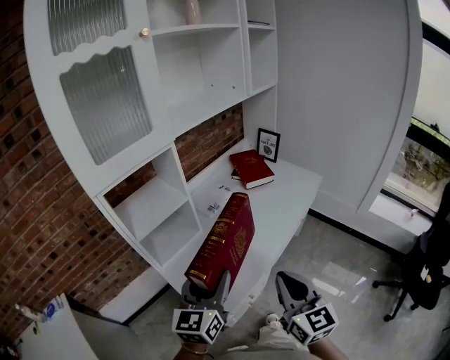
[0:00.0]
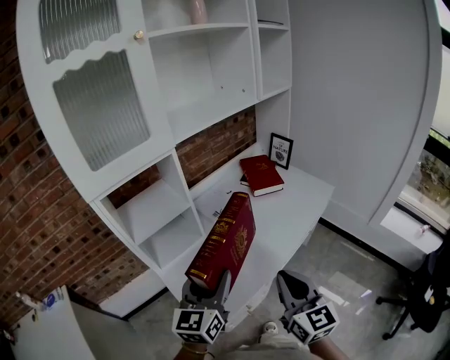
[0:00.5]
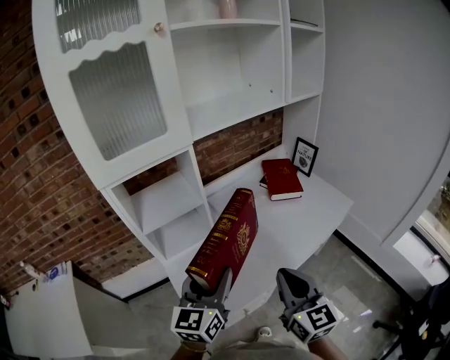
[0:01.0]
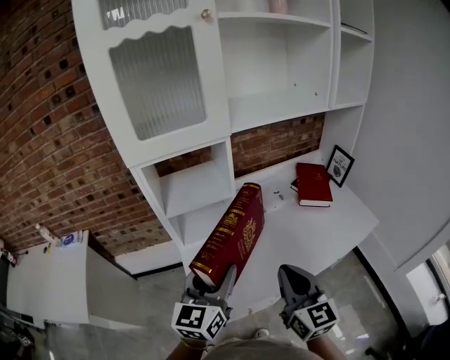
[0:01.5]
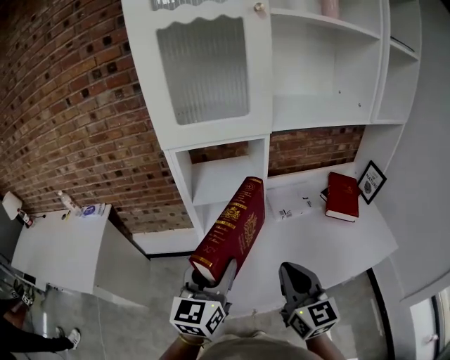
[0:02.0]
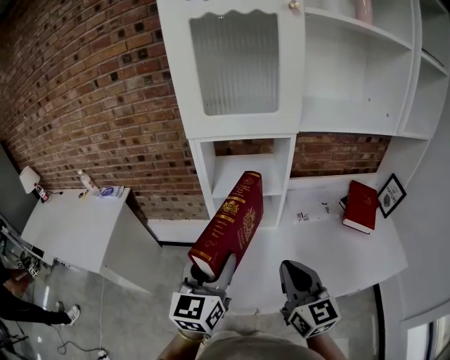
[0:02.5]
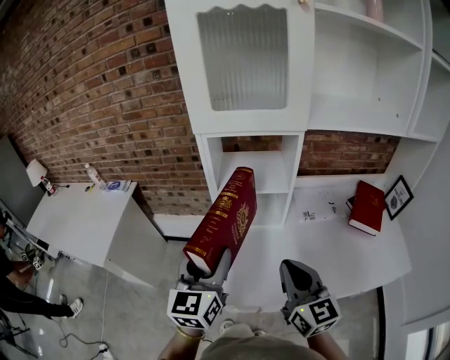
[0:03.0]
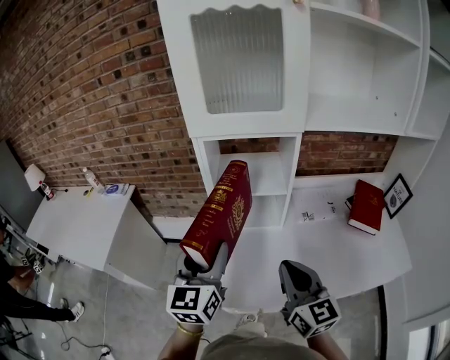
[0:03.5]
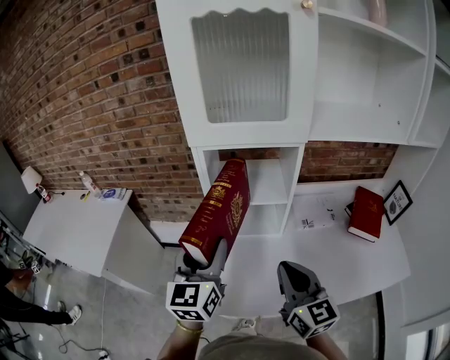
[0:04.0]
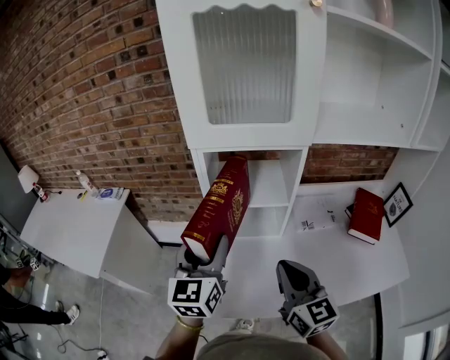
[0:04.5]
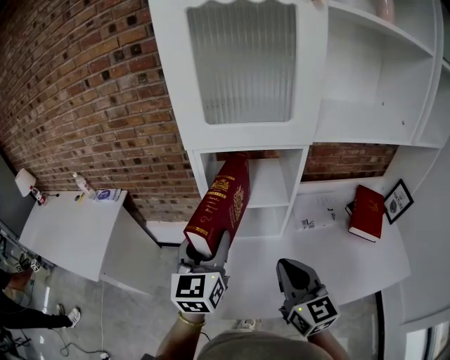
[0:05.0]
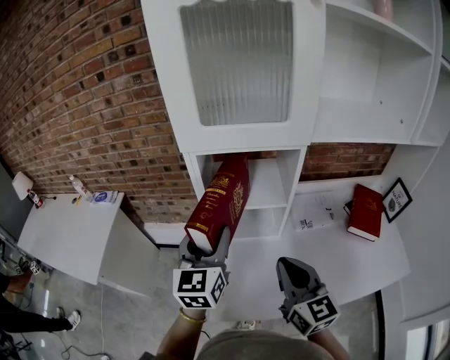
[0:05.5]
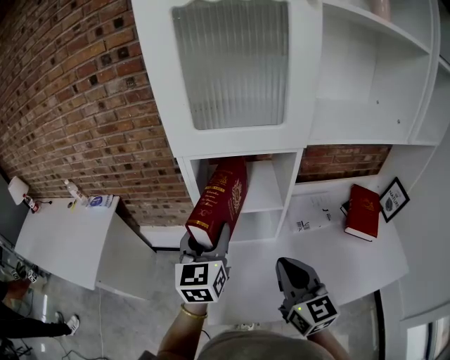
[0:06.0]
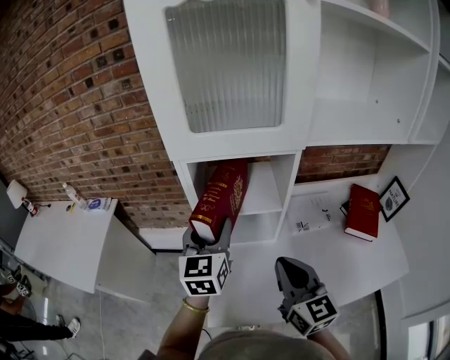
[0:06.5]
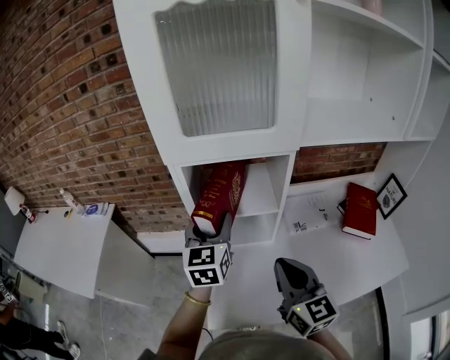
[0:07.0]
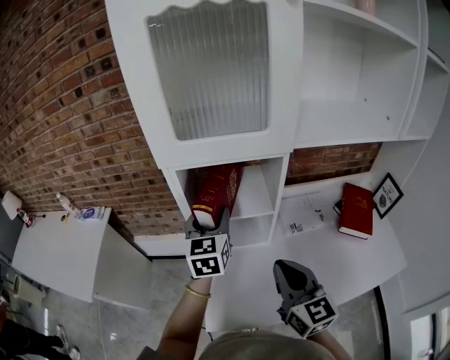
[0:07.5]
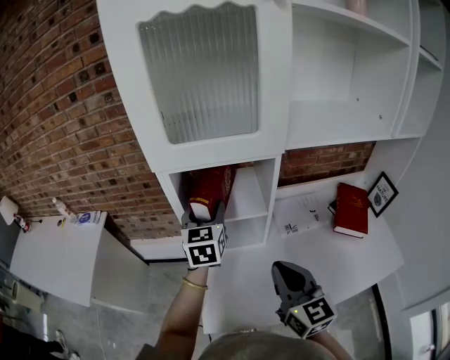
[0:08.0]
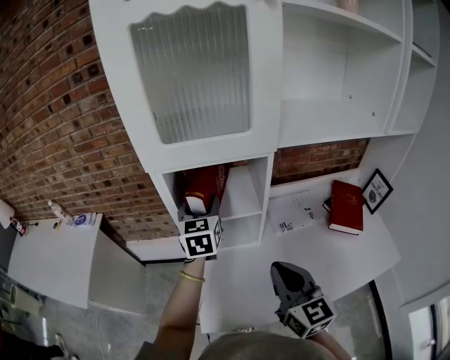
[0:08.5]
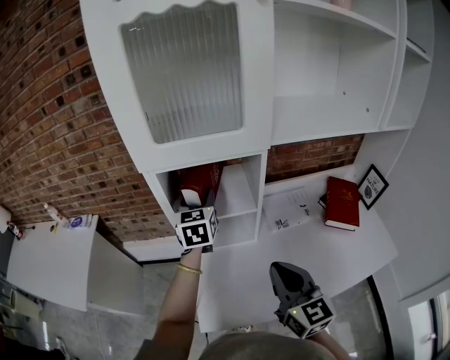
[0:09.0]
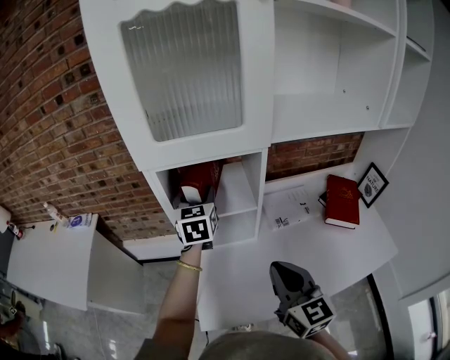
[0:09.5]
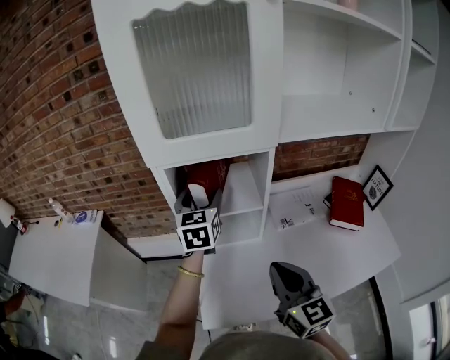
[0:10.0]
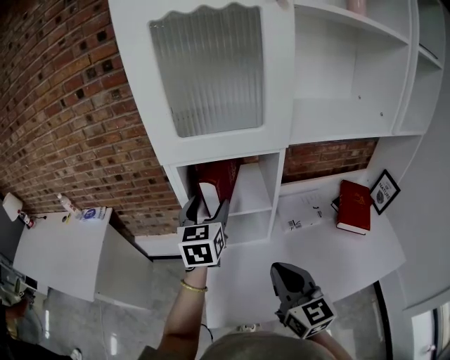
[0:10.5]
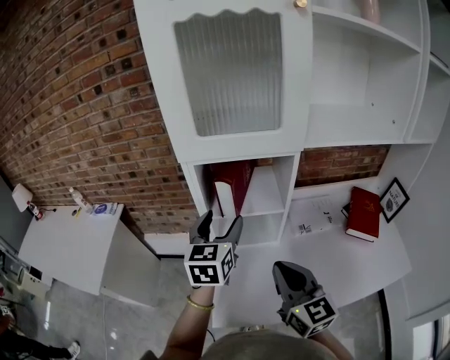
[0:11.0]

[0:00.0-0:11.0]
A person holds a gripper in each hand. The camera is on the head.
0:00.0 to 0:02.0: The right gripper shifts by roughly 15 cm, and rotates approximately 40 degrees; the left gripper changes place by approximately 5 cm, and turns by roughly 40 degrees.
0:02.0 to 0:03.5: The left gripper goes approximately 5 cm to the left.
0:03.5 to 0:05.5: The right gripper goes about 5 cm forward. Meanwhile the left gripper goes about 10 cm forward.
0:05.5 to 0:07.5: The left gripper moves forward and to the right, some 10 cm.
0:07.5 to 0:09.0: The left gripper is displaced forward by roughly 5 cm.
0:09.0 to 0:11.0: The right gripper shifts some 5 cm to the left; the left gripper moves backward, approximately 10 cm.

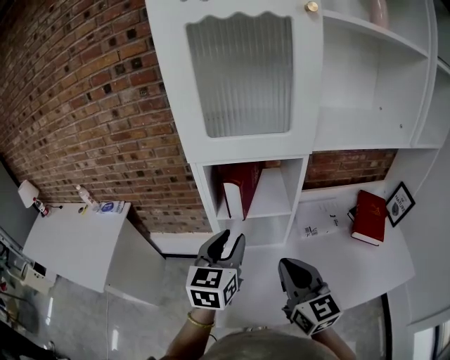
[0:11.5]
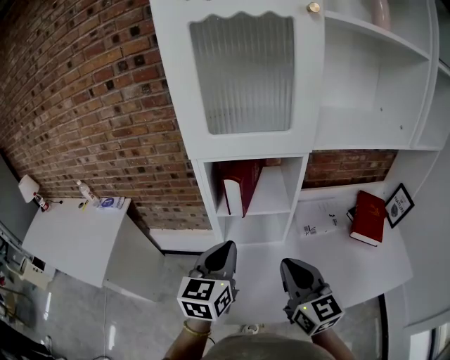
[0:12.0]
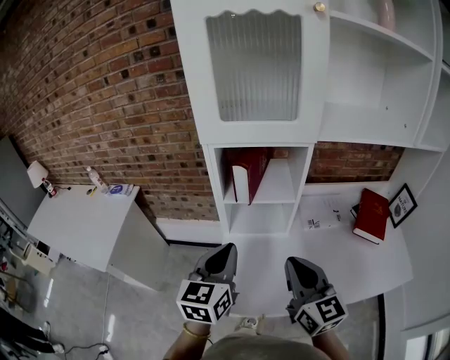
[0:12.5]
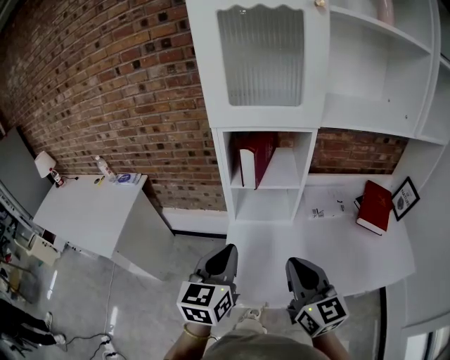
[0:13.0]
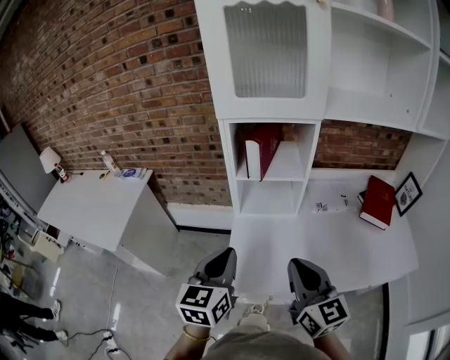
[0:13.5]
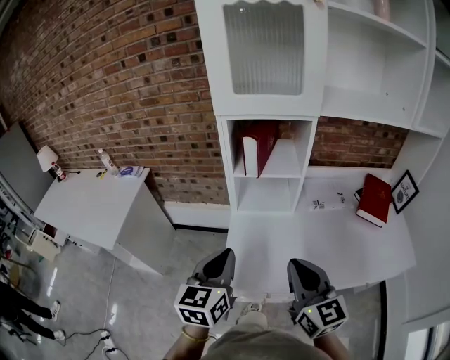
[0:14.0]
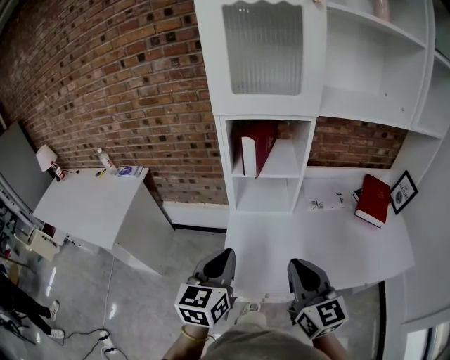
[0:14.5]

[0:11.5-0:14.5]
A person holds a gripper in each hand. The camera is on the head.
0:11.5 to 0:13.0: The two grippers go some 10 cm backward. The left gripper closes.
0:13.0 to 0:14.5: The left gripper changes place by about 5 cm.

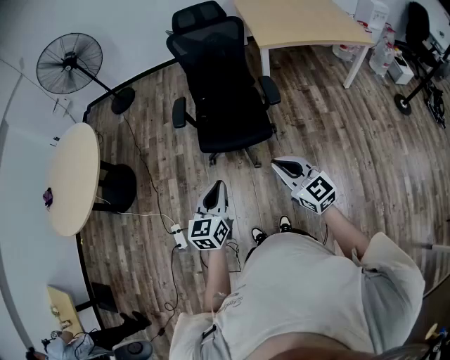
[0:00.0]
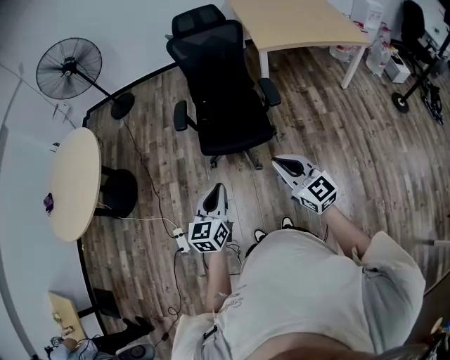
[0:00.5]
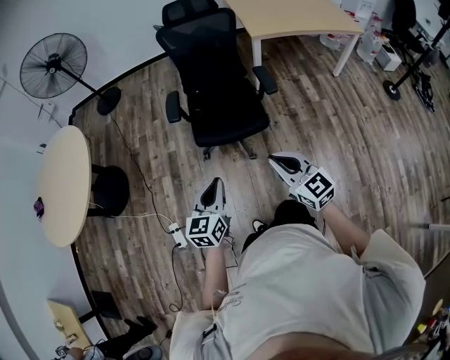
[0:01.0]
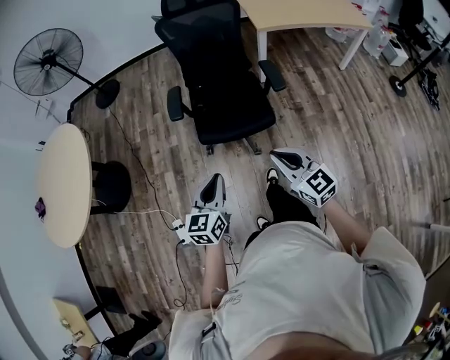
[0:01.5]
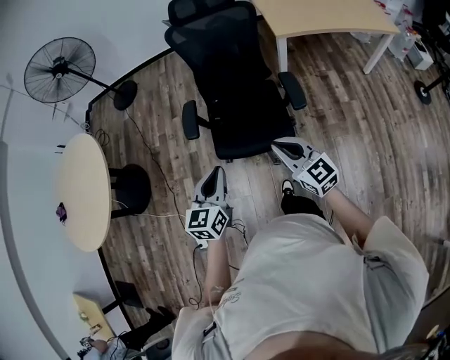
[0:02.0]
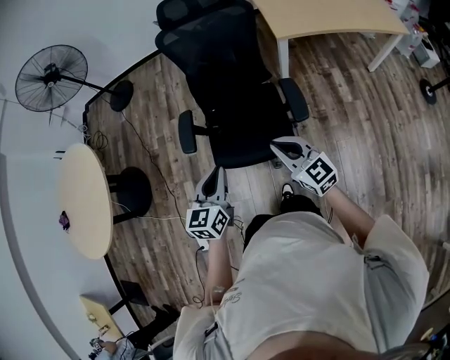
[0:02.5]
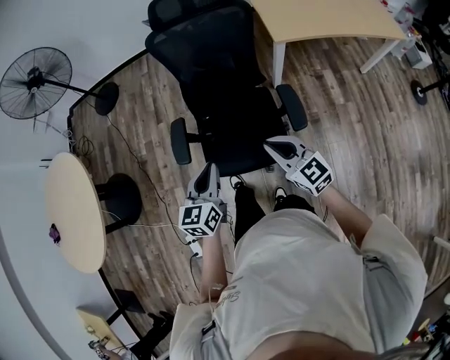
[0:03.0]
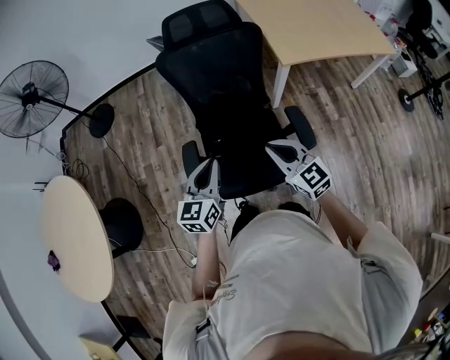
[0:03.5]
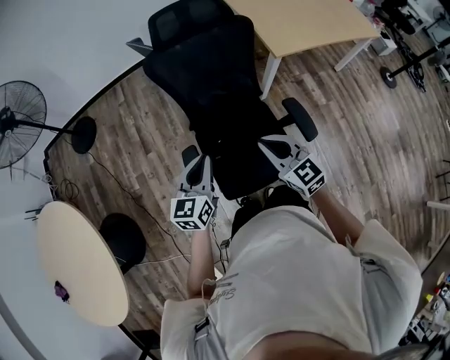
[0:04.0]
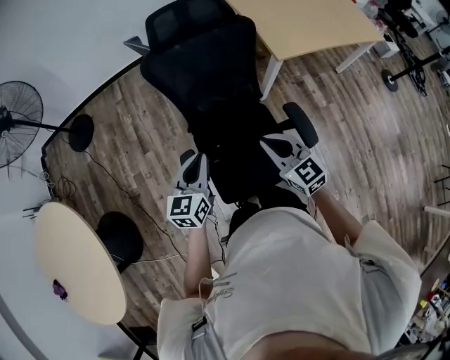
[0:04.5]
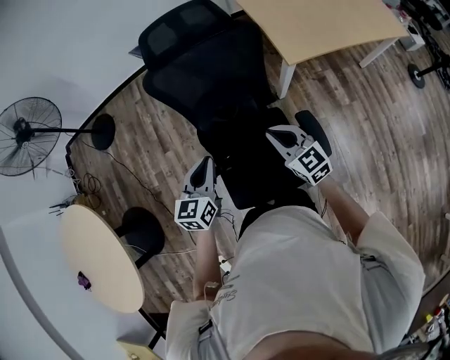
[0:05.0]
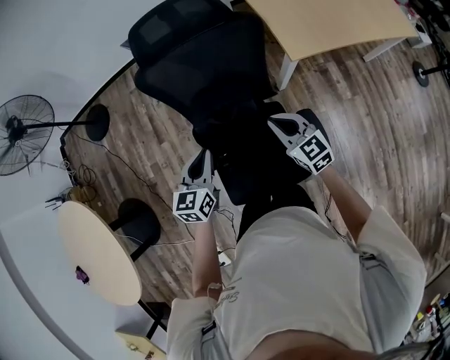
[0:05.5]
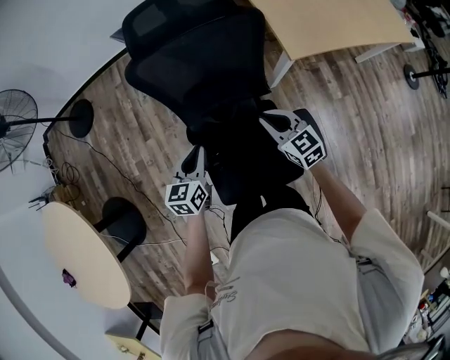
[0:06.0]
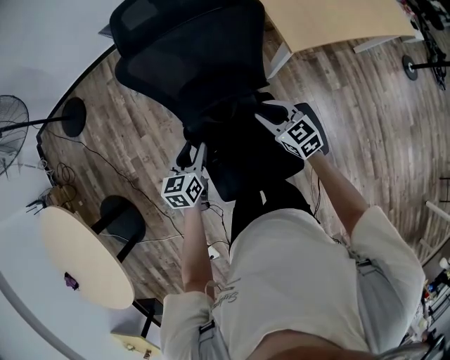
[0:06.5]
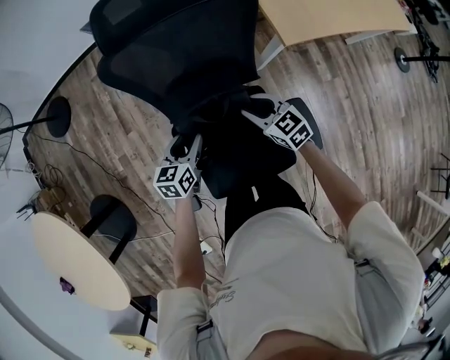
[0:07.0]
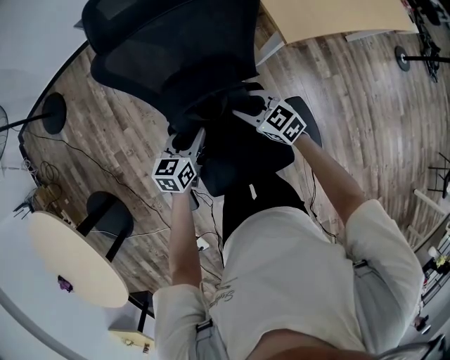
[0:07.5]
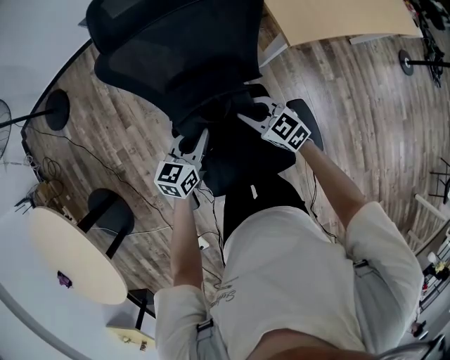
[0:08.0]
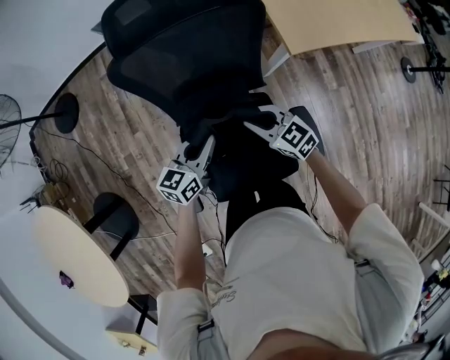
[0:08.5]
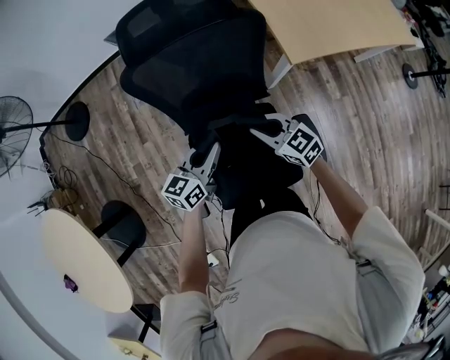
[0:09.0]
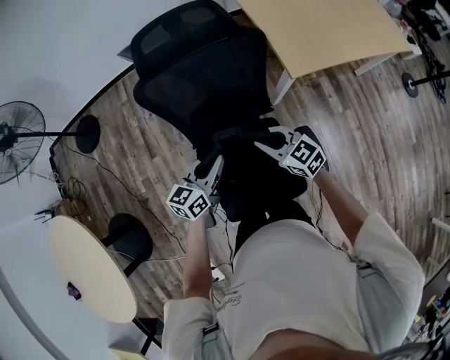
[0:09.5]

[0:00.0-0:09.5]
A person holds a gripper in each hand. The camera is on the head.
0:00.0 to 0:02.0: The two grippers go some 20 cm forward.
0:02.0 to 0:04.0: Both grippers move forward, about 35 cm.
0:04.0 to 0:05.5: The grippers both shift forward, to the right and downward by roughly 20 cm.
0:05.5 to 0:07.5: The left gripper shifts approximately 15 cm downward and forward, and opens up; the right gripper moves downward, forward and to the left, about 15 cm, and opens its fingers.
0:07.5 to 0:09.5: The right gripper travels upward and backward by approximately 10 cm, while the left gripper shifts some 10 cm upward, and closes.

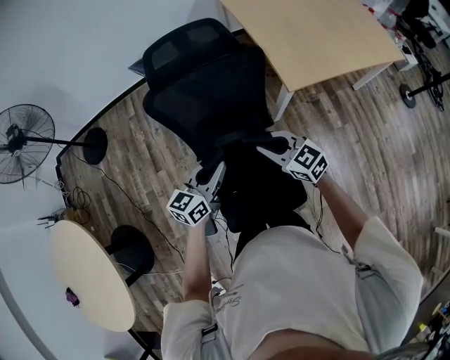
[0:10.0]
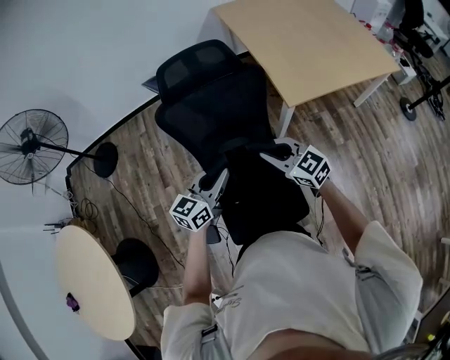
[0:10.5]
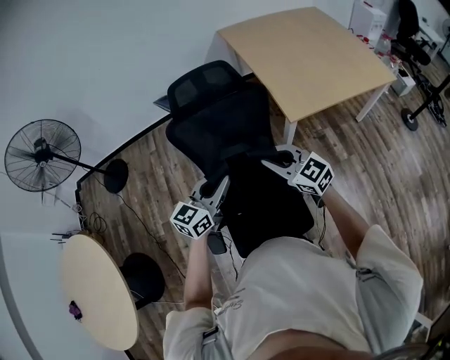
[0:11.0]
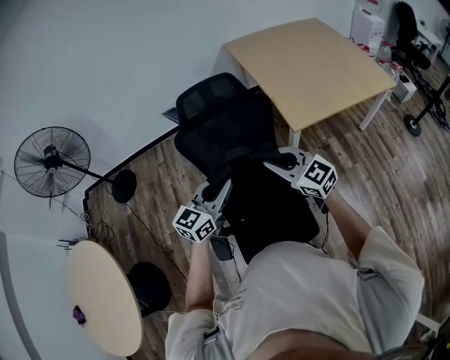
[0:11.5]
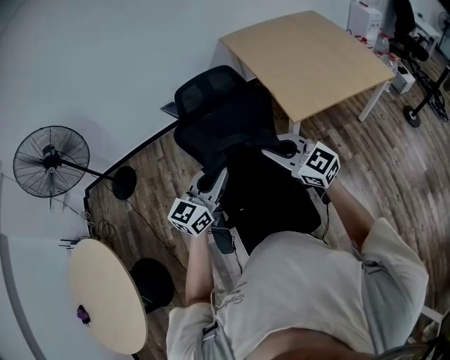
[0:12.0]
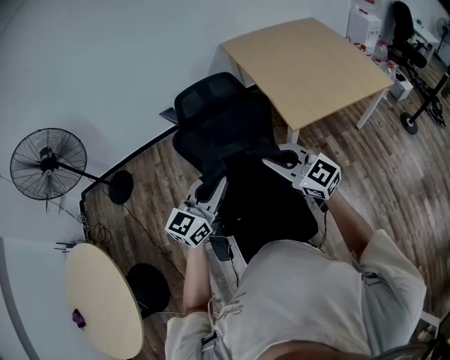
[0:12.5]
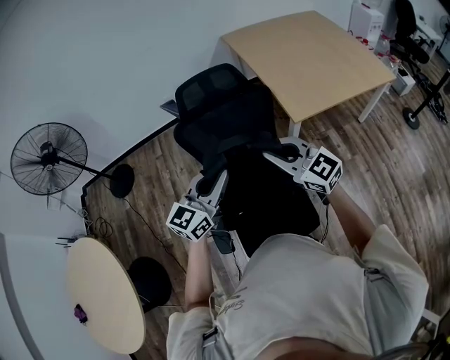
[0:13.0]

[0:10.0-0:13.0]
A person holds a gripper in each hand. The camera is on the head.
0:10.0 to 0:11.5: Both grippers travel together upward, approximately 15 cm.
0:11.5 to 0:13.0: The grippers move only a little.
